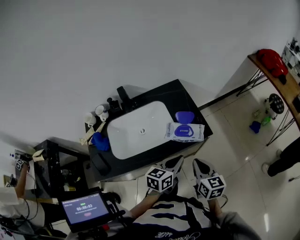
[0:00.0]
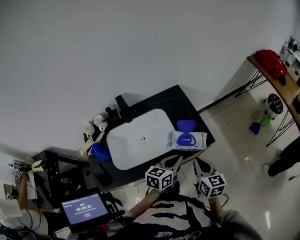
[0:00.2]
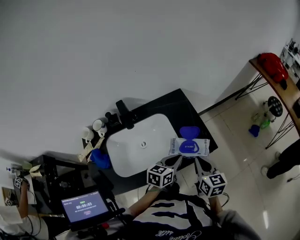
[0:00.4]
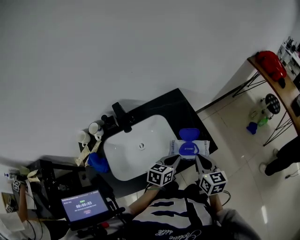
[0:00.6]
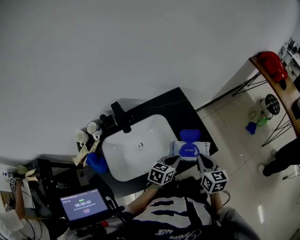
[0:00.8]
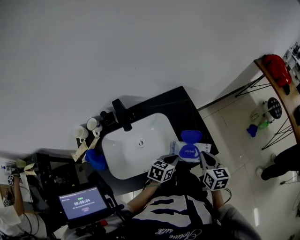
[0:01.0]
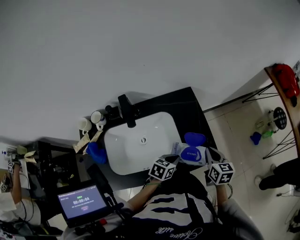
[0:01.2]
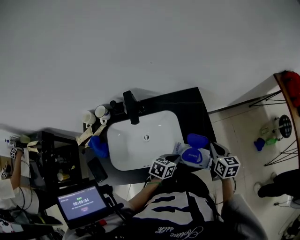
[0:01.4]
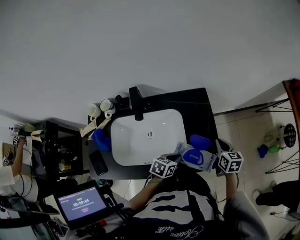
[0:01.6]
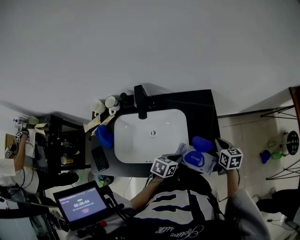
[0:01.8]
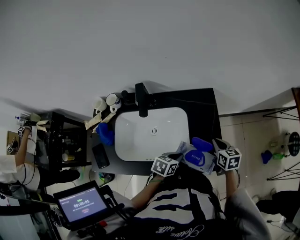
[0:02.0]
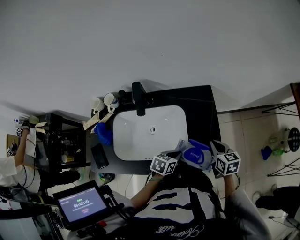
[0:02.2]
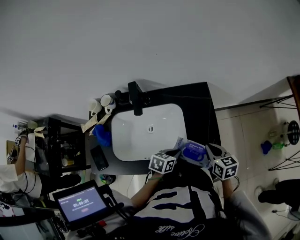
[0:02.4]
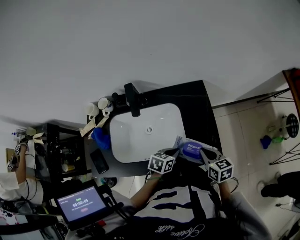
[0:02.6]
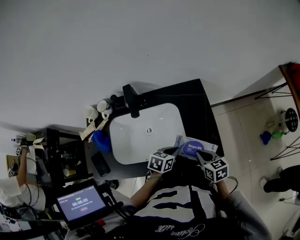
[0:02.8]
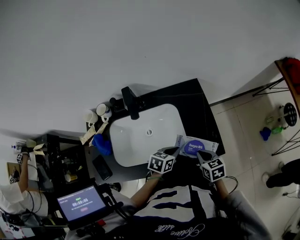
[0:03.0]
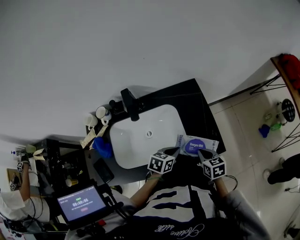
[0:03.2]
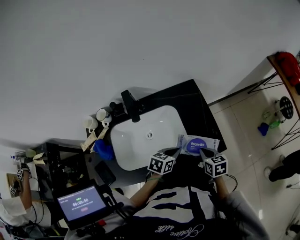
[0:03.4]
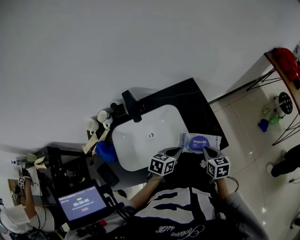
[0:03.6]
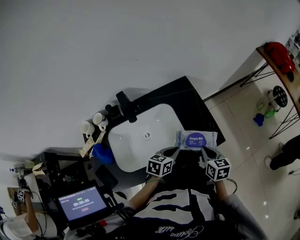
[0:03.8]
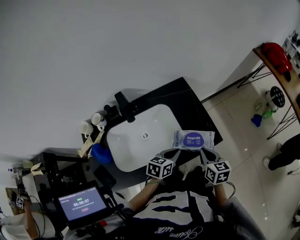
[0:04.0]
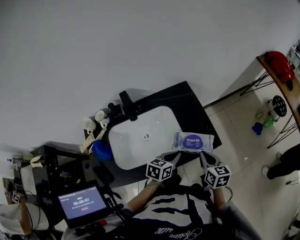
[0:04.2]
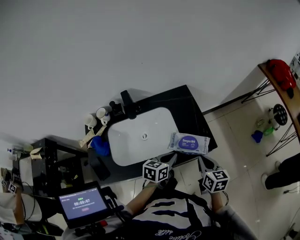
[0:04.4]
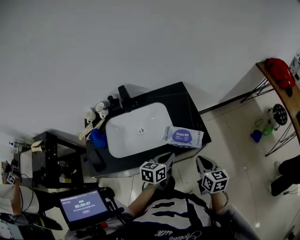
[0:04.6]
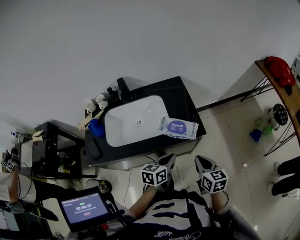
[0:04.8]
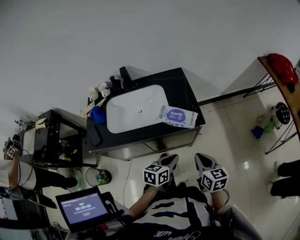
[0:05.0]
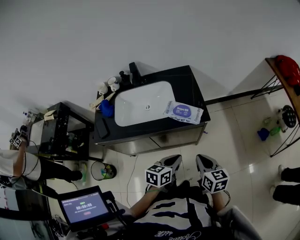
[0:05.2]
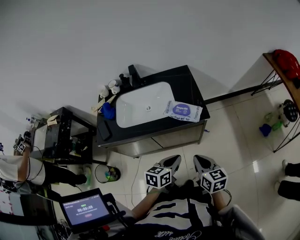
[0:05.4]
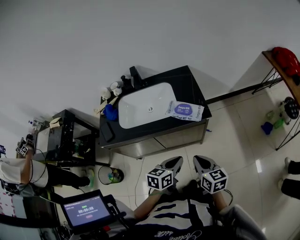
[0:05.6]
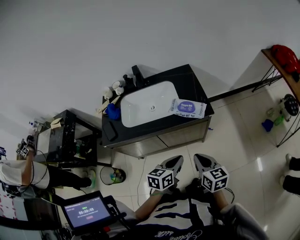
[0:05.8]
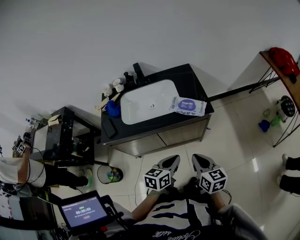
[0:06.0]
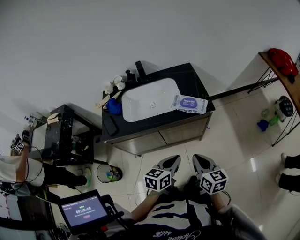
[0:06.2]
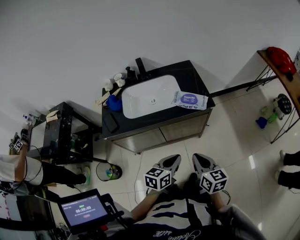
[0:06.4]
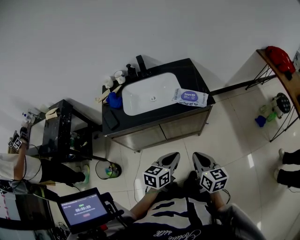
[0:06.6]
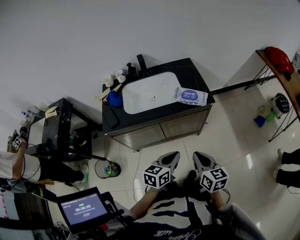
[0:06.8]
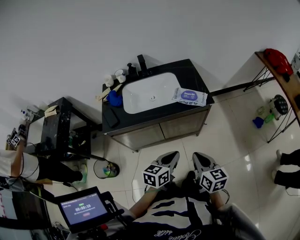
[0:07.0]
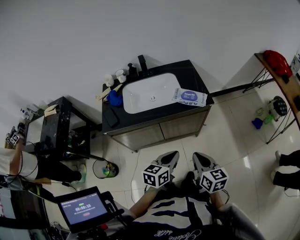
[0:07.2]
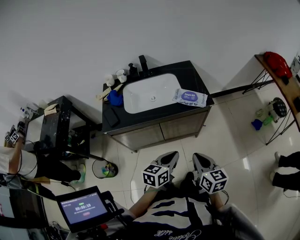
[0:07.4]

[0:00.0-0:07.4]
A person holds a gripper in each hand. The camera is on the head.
0:00.0 to 0:01.4: The left gripper shifts some 20 cm forward, downward and to the left, and turns by approximately 20 degrees. Meanwhile the right gripper travels forward by approximately 25 cm.
0:01.4 to 0:03.0: The right gripper heads backward, to the left and downward, covering roughly 15 cm.
0:03.0 to 0:04.4: Both grippers travel together upward and backward, approximately 10 cm. The right gripper changes its angle by approximately 30 degrees.
0:04.4 to 0:06.0: Both grippers move backward, approximately 25 cm.
0:06.0 to 0:07.4: The two grippers go roughly 5 cm backward.

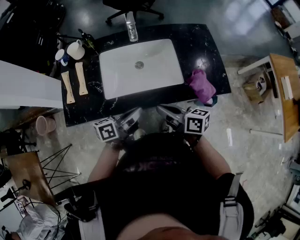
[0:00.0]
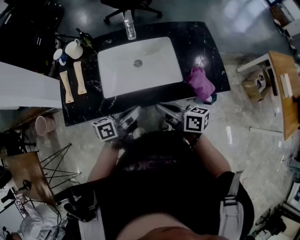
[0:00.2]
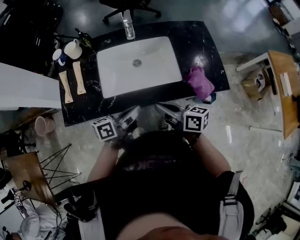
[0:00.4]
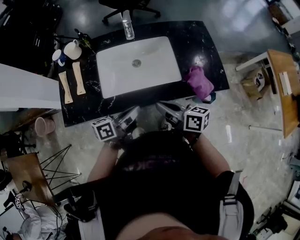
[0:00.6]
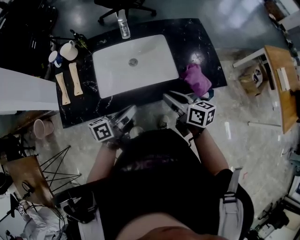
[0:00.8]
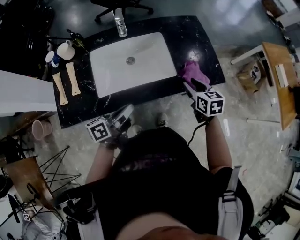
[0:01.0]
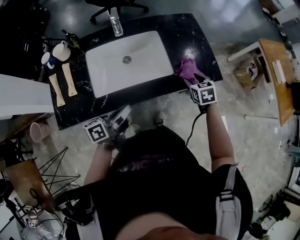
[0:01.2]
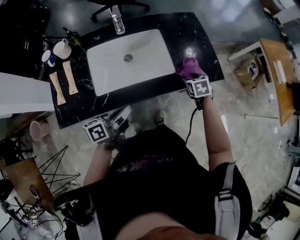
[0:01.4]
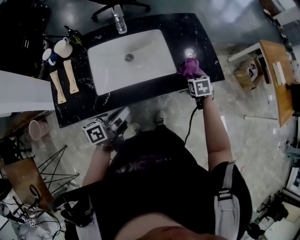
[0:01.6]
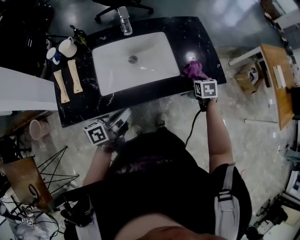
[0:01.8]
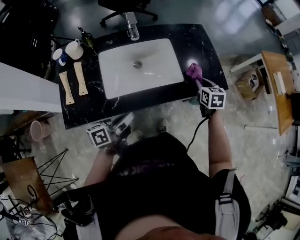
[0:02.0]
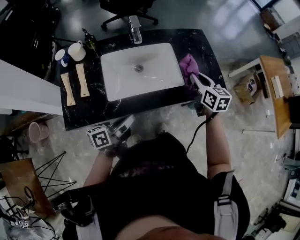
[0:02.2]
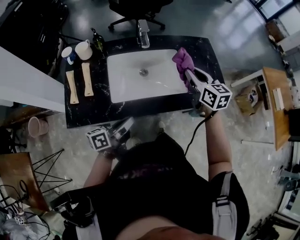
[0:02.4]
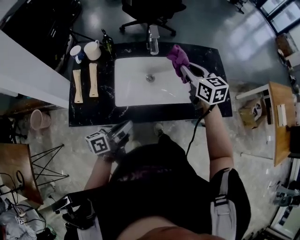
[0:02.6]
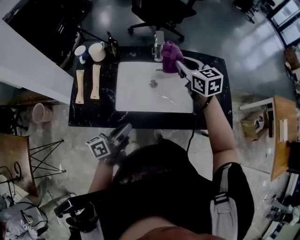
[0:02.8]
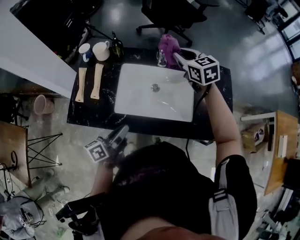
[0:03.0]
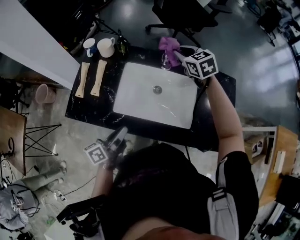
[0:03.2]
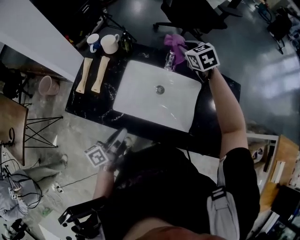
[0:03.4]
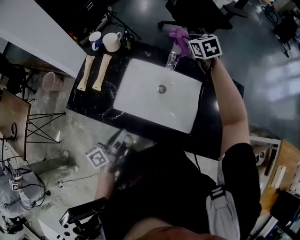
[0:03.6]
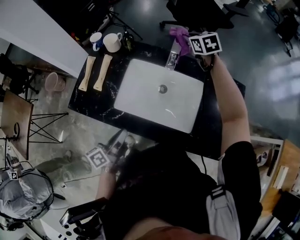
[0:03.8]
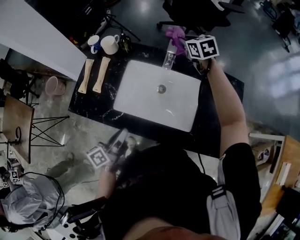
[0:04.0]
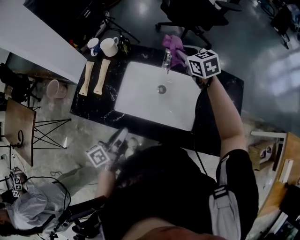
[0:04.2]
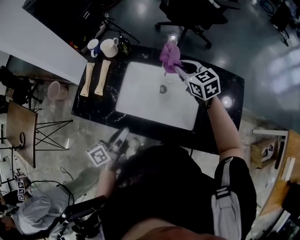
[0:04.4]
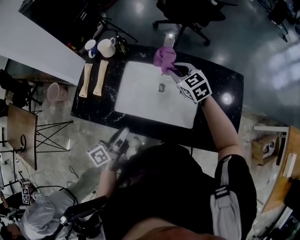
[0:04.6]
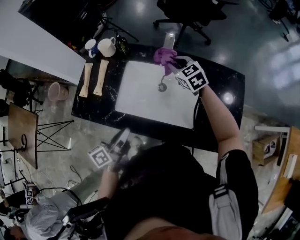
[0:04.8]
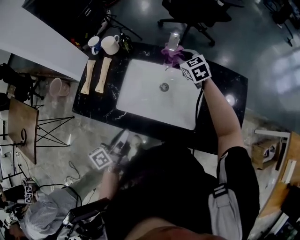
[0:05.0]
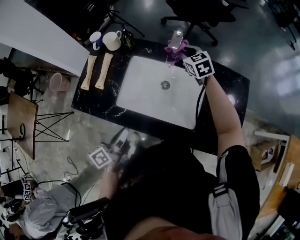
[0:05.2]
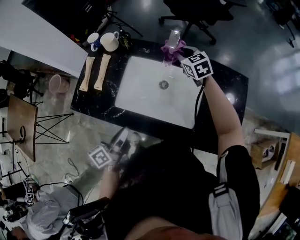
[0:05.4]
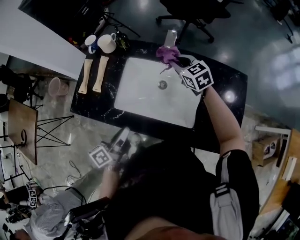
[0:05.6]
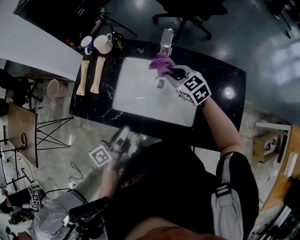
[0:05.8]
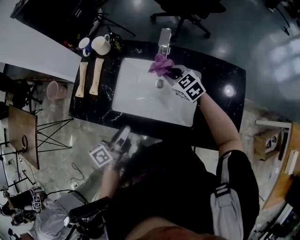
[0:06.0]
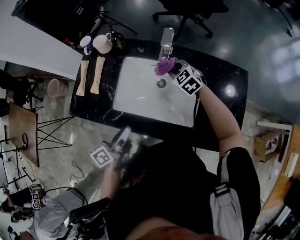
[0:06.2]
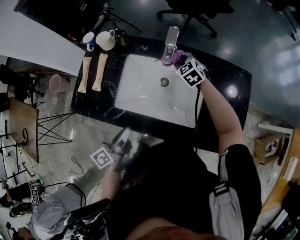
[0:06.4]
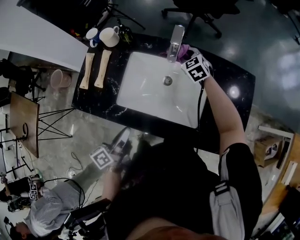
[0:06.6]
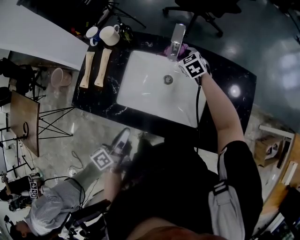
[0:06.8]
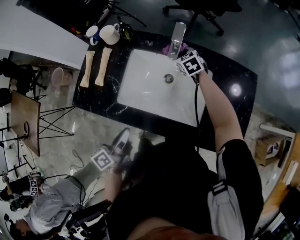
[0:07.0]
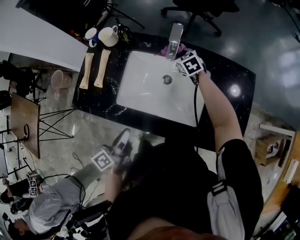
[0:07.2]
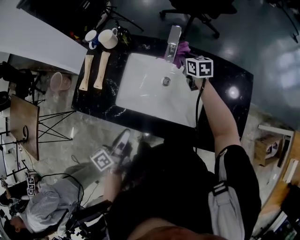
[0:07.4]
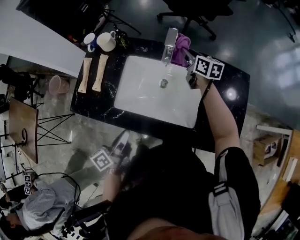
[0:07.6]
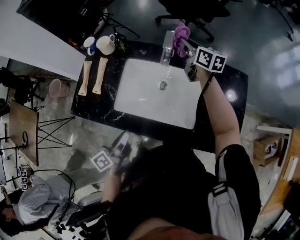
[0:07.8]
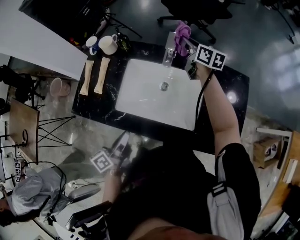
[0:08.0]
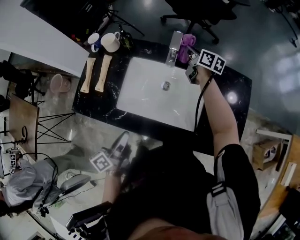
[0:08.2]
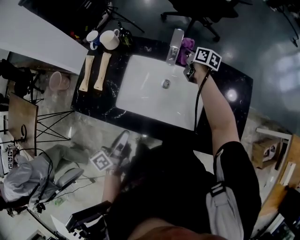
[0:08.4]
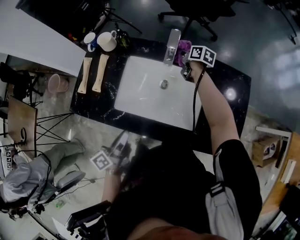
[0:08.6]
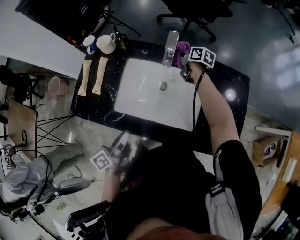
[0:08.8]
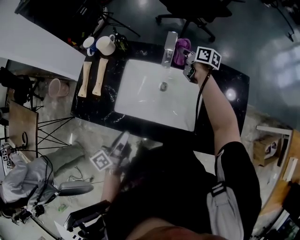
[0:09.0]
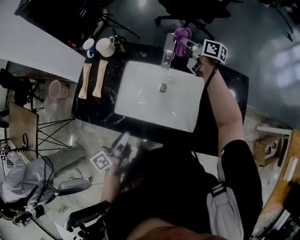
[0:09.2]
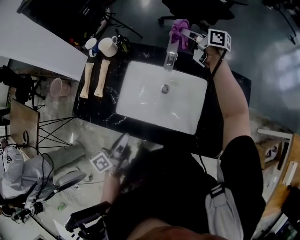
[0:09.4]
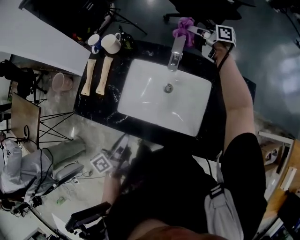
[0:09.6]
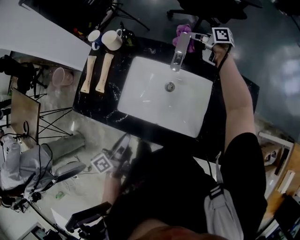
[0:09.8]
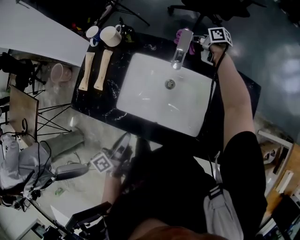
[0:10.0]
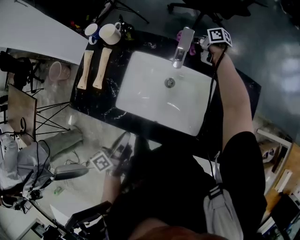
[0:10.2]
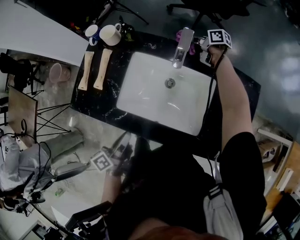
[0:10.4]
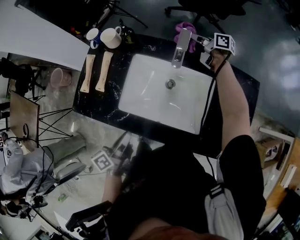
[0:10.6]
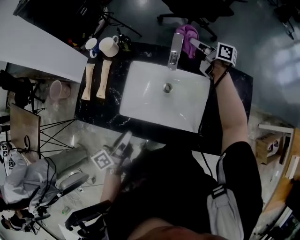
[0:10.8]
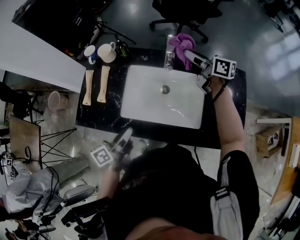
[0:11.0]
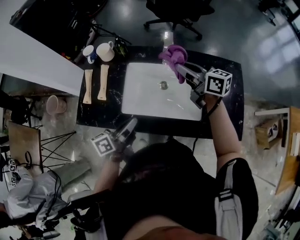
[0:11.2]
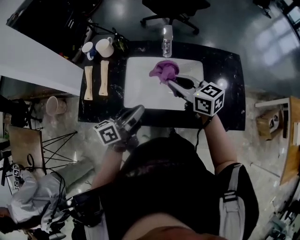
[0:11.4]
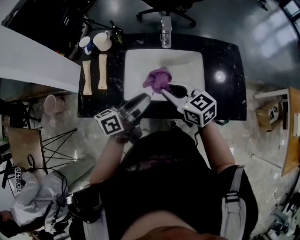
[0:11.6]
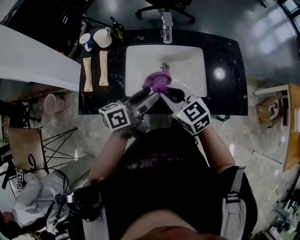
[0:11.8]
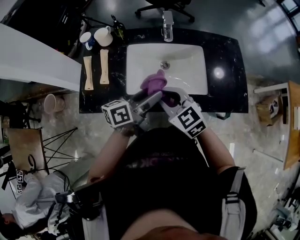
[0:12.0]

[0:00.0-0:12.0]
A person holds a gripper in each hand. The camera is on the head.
0:00.0 to 0:01.6: The right gripper moves about 30 cm, angles its fingers downward, by some 50 degrees, and opens.
0:01.6 to 0:03.0: The left gripper changes place by about 5 cm, and swivels some 30 degrees. The right gripper ends up about 40 cm from where it was, and points its fingers some 30 degrees further upward.
0:03.0 to 0:04.4: The right gripper goes some 5 cm downward, and goes forward and returns, some 15 cm each way.
0:04.4 to 0:06.0: The right gripper is displaced downward by some 10 cm, and moves about 10 cm forward and comes back.
0:06.0 to 0:07.6: The right gripper heads forward and to the right, covering some 15 cm, and rolls clockwise, seen from behind, by some 40 degrees.
0:07.6 to 0:09.0: The right gripper moves up and down over about 15 cm, changing direction 2 times, and swivels approximately 20 degrees.
0:09.0 to 0:10.4: The right gripper goes approximately 5 cm forward, travels upward and back again, roughly 10 cm each way, and changes its angle by about 20 degrees.
0:10.4 to 0:12.0: The right gripper changes place by some 50 cm, and rotates around the line of its fingers by approximately 60 degrees, counterclockwise from behind, while the left gripper travels upward by roughly 10 cm, changes its angle by approximately 40 degrees, and opens its fingers.

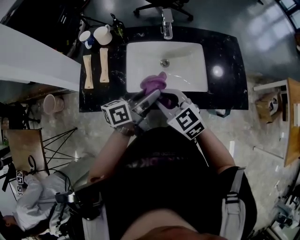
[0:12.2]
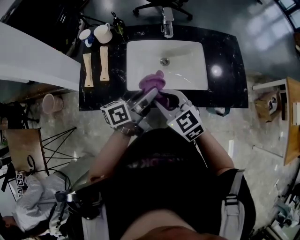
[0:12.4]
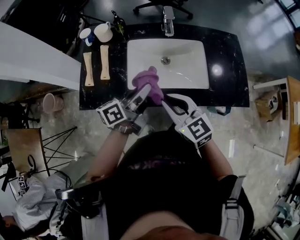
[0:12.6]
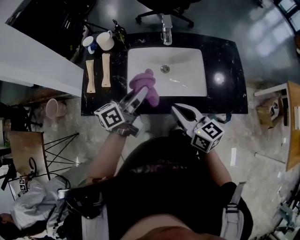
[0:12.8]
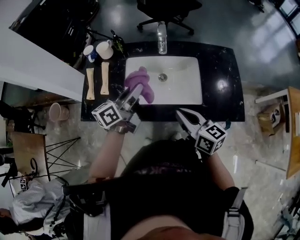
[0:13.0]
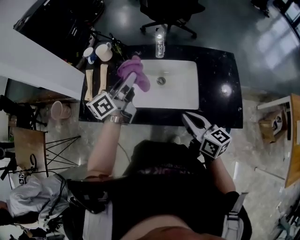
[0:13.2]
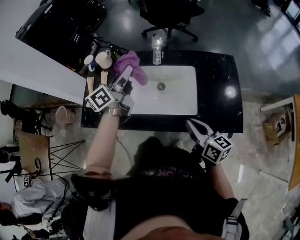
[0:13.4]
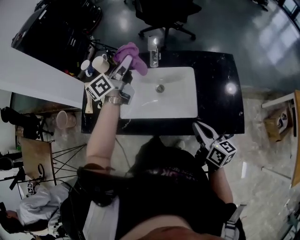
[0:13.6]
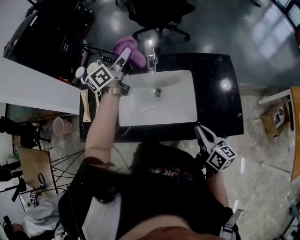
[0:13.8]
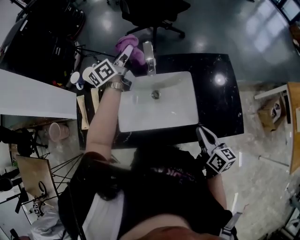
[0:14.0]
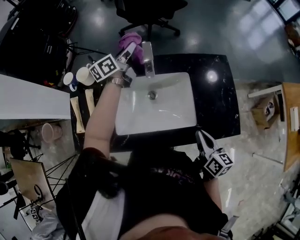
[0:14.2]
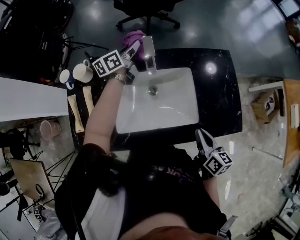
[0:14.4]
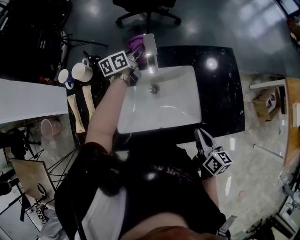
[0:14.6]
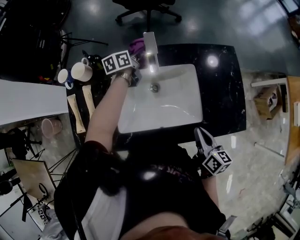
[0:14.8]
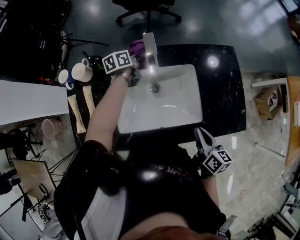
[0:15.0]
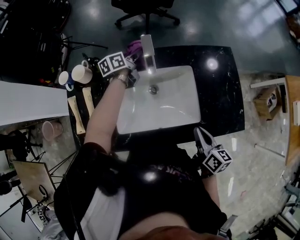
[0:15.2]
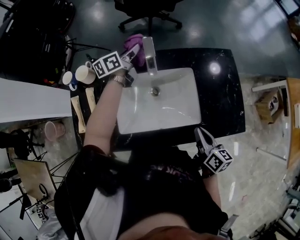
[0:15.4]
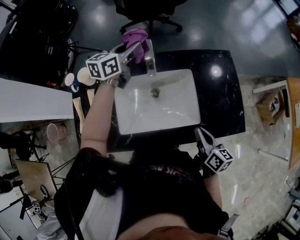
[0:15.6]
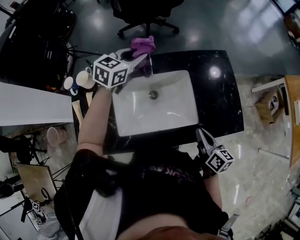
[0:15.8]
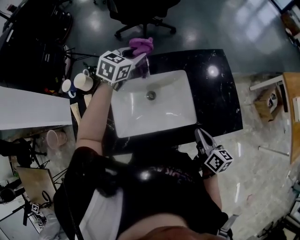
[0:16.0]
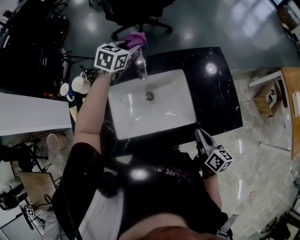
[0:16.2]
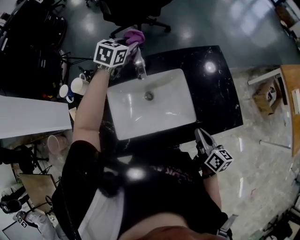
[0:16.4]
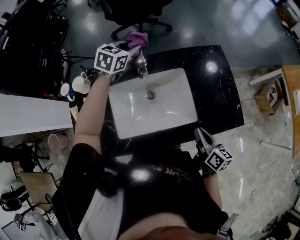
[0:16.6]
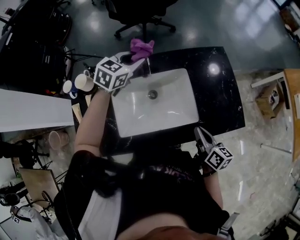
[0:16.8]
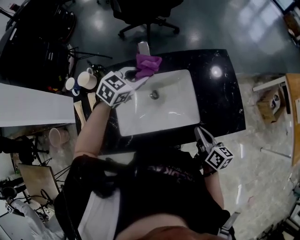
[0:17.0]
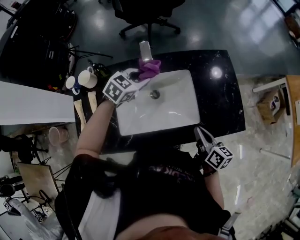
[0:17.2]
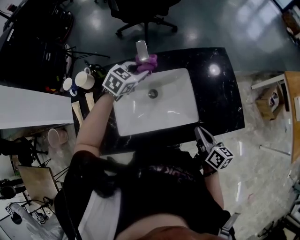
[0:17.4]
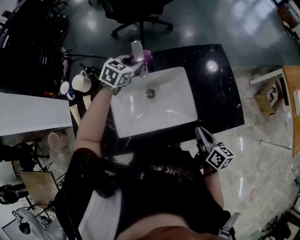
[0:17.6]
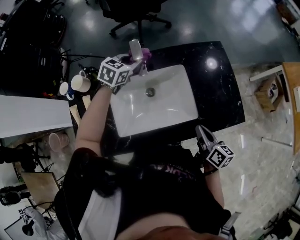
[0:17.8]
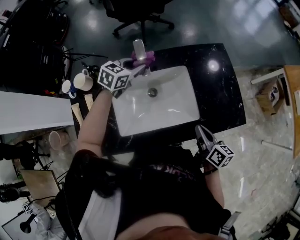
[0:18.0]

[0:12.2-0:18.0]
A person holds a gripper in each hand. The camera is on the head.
0:12.2 to 0:13.6: The right gripper goes about 25 cm to the right, and twists approximately 50 degrees clockwise, seen from behind; the left gripper goes approximately 25 cm forward and upward, swivels about 20 degrees, and closes.
0:13.6 to 0:15.0: The right gripper heads downward, covering some 5 cm, and changes its angle by approximately 20 degrees. The left gripper goes about 30 cm downward and forward, and turns by about 30 degrees.
0:15.0 to 0:16.6: The left gripper is displaced upward by some 15 cm, and rolls clockwise, seen from behind, by about 60 degrees.
0:16.6 to 0:18.0: The left gripper heads backward and downward, covering approximately 10 cm.
